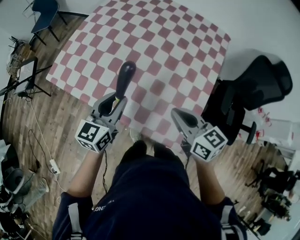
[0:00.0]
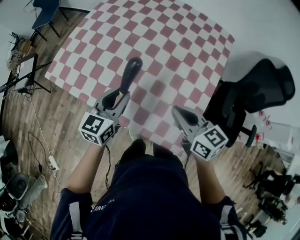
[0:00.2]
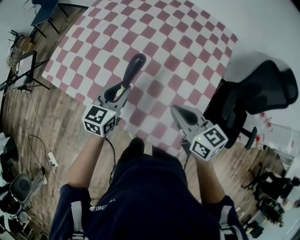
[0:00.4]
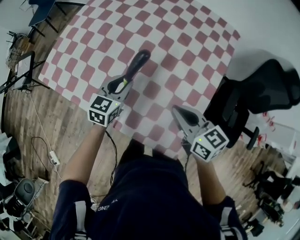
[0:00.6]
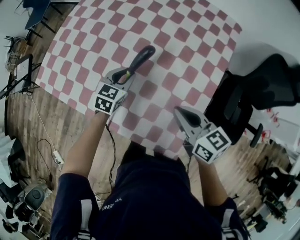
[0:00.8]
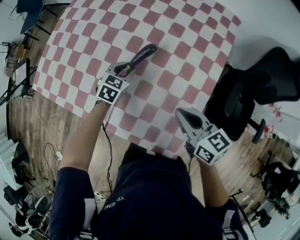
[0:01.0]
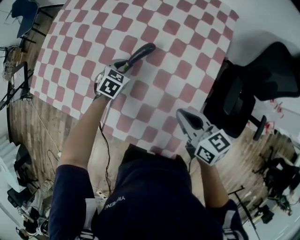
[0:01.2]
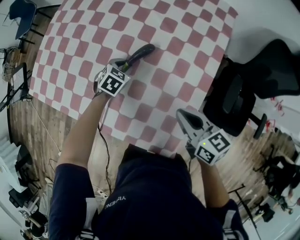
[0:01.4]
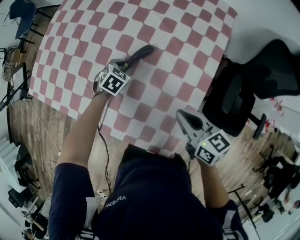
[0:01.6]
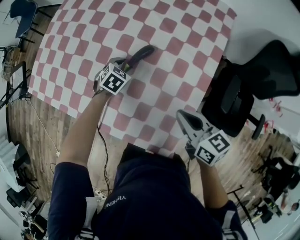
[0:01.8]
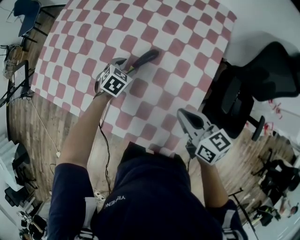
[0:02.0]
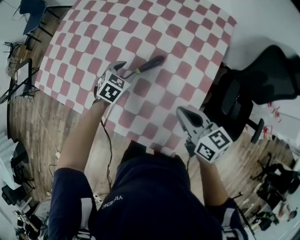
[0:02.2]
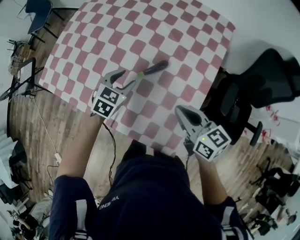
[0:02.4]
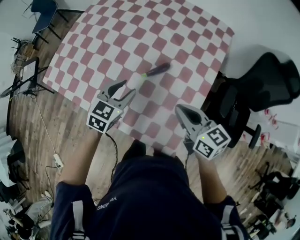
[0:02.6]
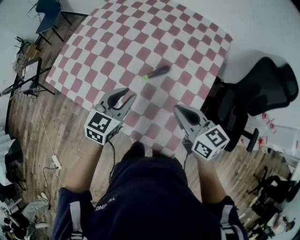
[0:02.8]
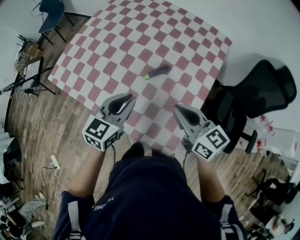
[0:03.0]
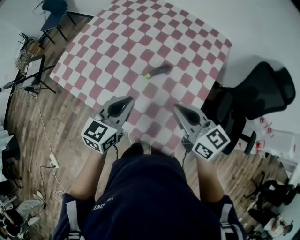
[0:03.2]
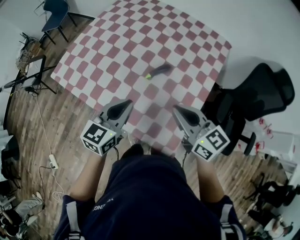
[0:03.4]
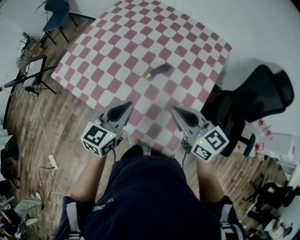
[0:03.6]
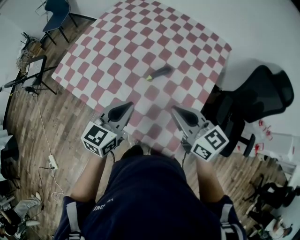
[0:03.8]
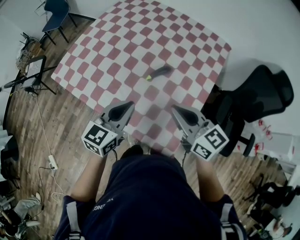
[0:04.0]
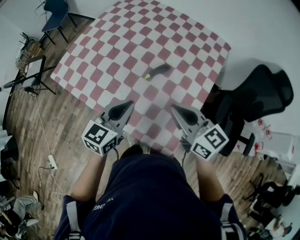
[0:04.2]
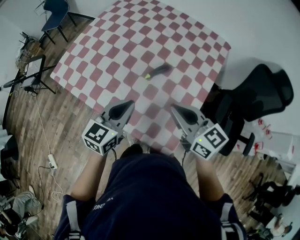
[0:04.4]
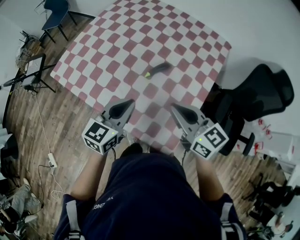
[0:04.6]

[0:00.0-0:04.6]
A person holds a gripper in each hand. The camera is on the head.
0.0 to 1.6 s: The left gripper is displaced downward, forward and to the right by some 35 cm, and tips its fingers downward by about 50 degrees; the right gripper travels to the right and downward by about 20 cm.
1.6 to 3.0 s: The left gripper goes approximately 35 cm upward and backward, angles its fingers upward, by about 40 degrees, and opens, then closes again, while the right gripper shifts approximately 15 cm upward and to the left, and turns by about 20 degrees.
3.0 to 4.6 s: The grippers move only a little.

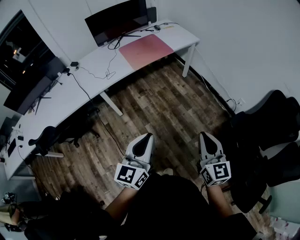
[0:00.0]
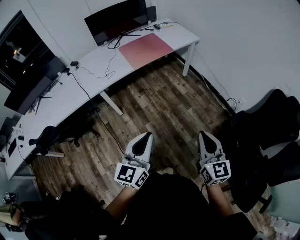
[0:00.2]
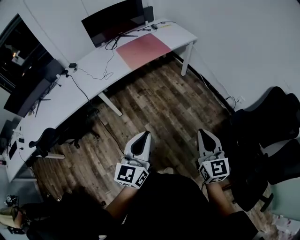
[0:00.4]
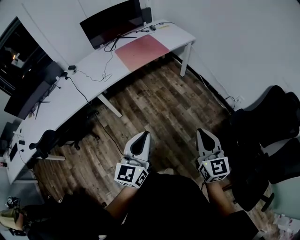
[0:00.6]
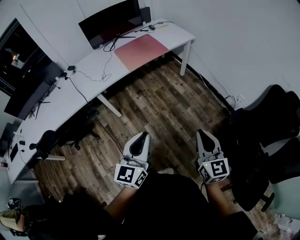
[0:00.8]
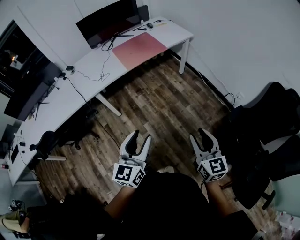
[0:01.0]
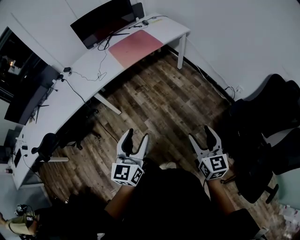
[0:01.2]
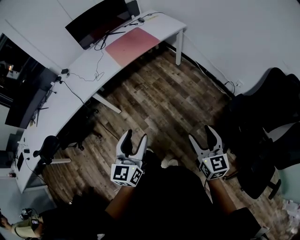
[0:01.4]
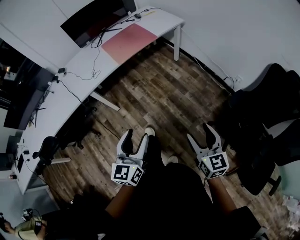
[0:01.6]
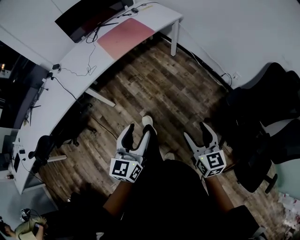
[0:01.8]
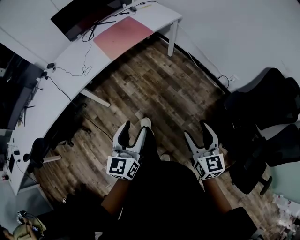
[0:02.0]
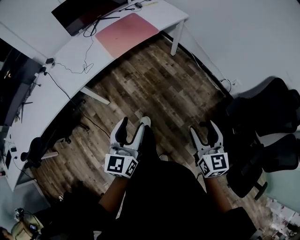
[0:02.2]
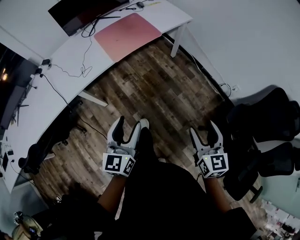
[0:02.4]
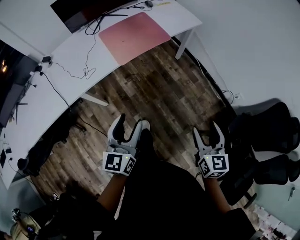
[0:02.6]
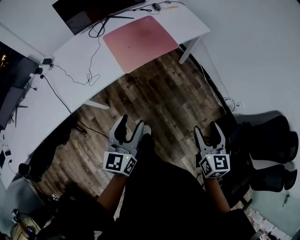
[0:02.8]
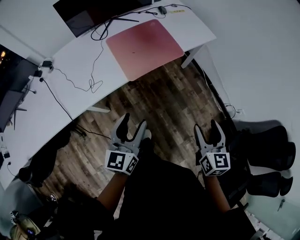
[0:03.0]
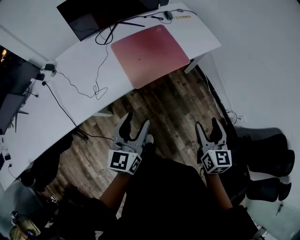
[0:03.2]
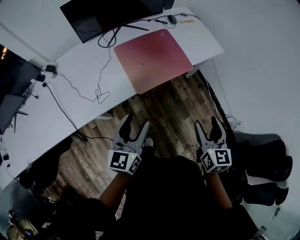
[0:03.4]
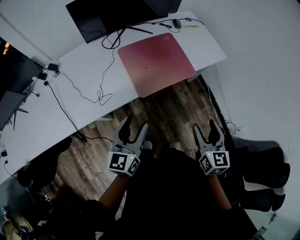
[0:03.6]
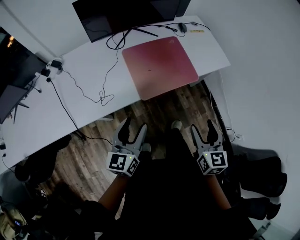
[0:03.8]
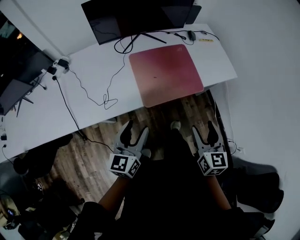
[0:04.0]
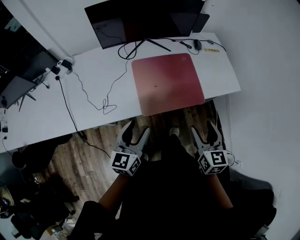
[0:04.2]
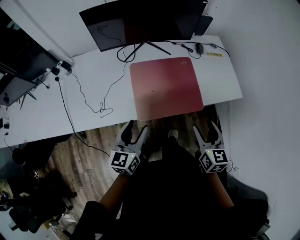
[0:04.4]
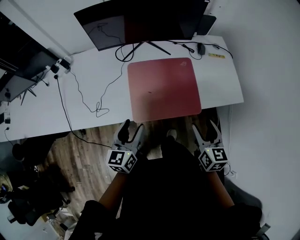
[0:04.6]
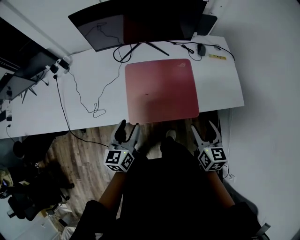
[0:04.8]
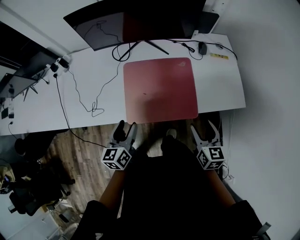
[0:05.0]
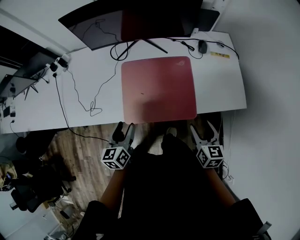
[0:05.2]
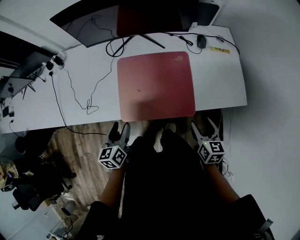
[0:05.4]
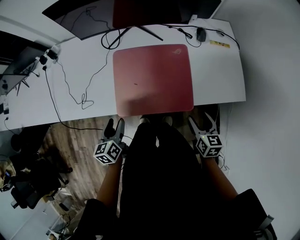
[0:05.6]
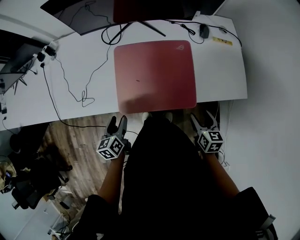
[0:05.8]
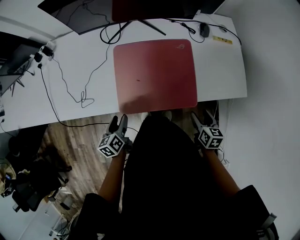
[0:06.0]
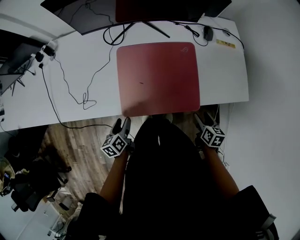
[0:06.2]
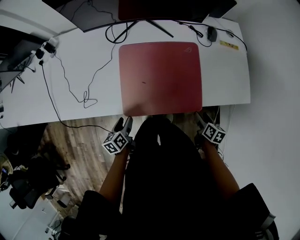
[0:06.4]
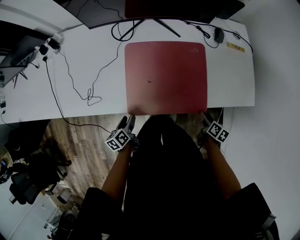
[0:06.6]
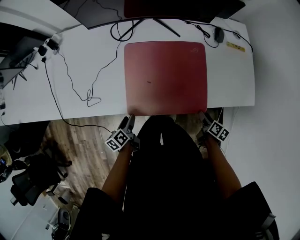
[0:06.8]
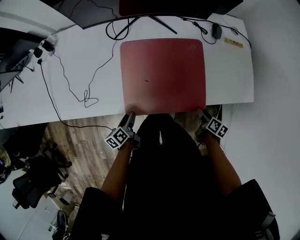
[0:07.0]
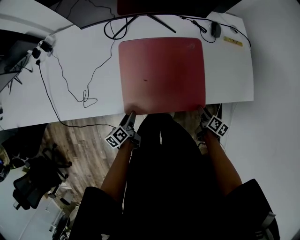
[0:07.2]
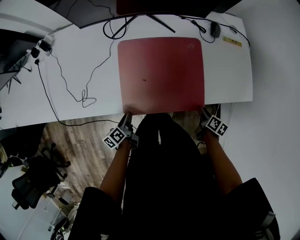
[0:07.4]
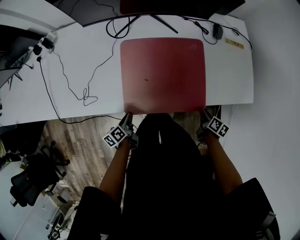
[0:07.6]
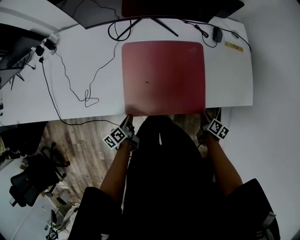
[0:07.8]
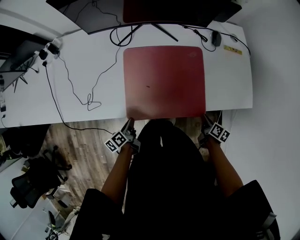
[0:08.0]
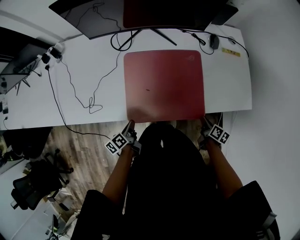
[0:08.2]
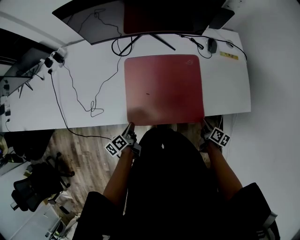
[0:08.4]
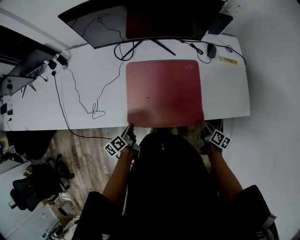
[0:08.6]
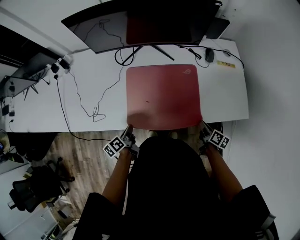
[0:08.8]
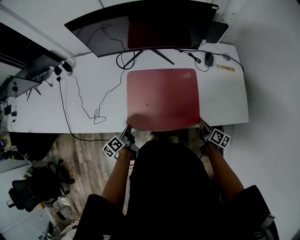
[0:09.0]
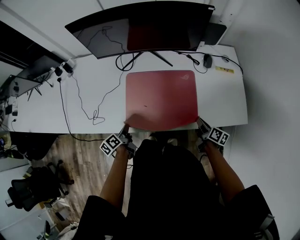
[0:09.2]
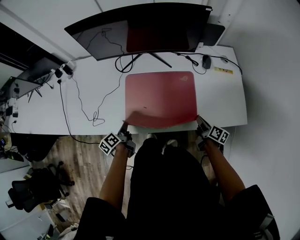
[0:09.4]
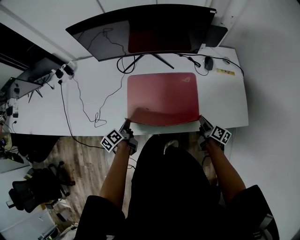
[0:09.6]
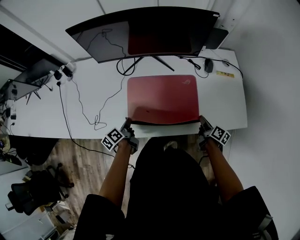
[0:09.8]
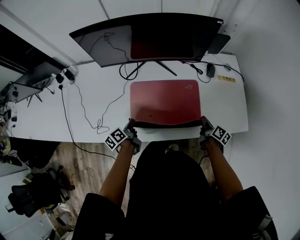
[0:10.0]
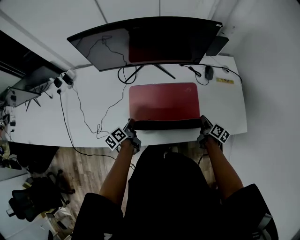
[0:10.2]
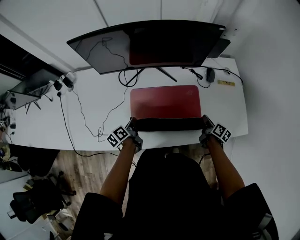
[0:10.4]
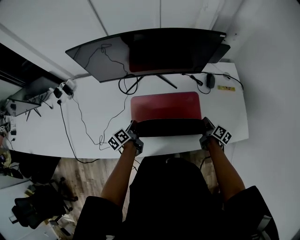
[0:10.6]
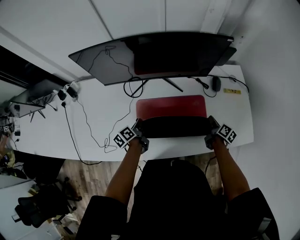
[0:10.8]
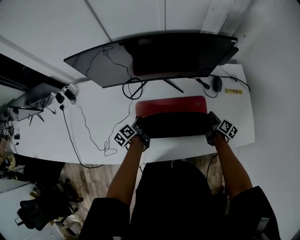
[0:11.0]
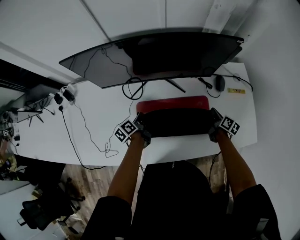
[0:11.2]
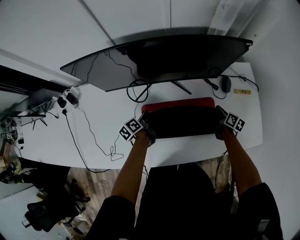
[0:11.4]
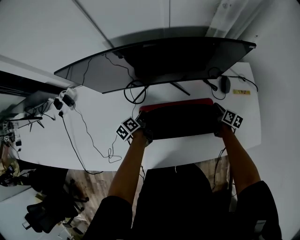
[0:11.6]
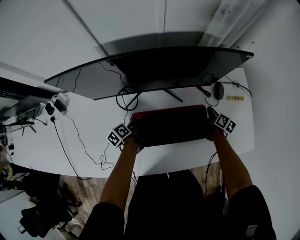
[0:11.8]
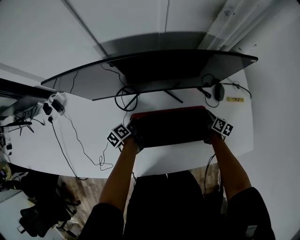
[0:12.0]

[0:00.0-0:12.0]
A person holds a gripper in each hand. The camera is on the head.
0.0 to 1.6 s: The left gripper moves about 5 cm, and opens. Meanwhile the right gripper travels downward by about 5 cm, and opens up.
1.6 to 3.0 s: The pair of grippers is taken forward, some 40 cm.
3.0 to 4.4 s: Both grippers travel together forward, roughly 25 cm. The right gripper swivels about 20 degrees.
4.4 to 6.0 s: The right gripper moves downward, to the right and forward, about 25 cm, and turns by some 20 degrees, while the left gripper shifts roughly 20 cm downward, and turns by about 40 degrees.
6.0 to 7.6 s: The two grippers go some 10 cm downward. The left gripper rotates approximately 20 degrees, and closes up. Meanwhile the right gripper swivels roughly 30 degrees, and closes up.
7.6 to 9.0 s: The right gripper moves upward and forward, roughly 10 cm. Meanwhile the left gripper moves upward, approximately 10 cm.
9.0 to 10.4 s: The two grippers go about 15 cm forward.
10.4 to 12.0 s: The grippers both shift forward by about 20 cm.

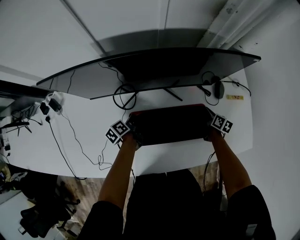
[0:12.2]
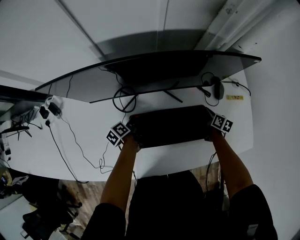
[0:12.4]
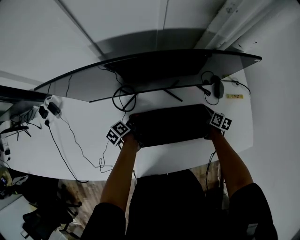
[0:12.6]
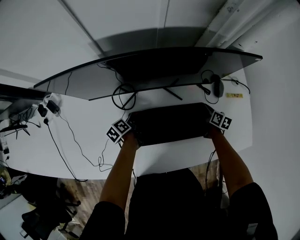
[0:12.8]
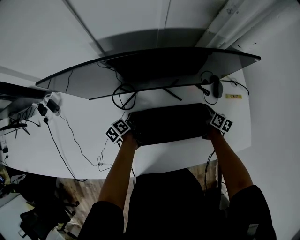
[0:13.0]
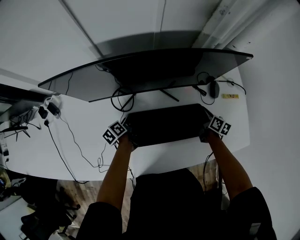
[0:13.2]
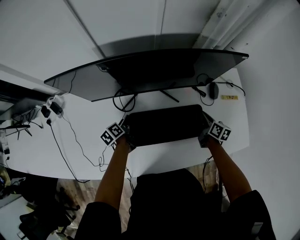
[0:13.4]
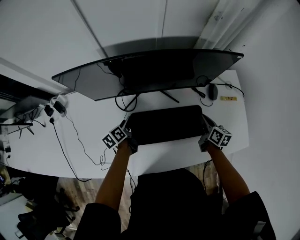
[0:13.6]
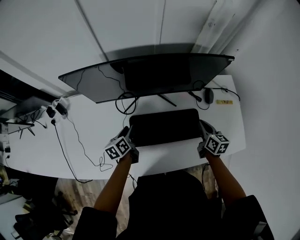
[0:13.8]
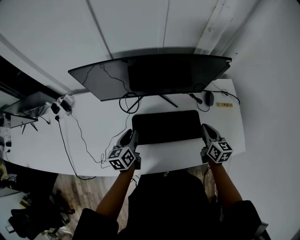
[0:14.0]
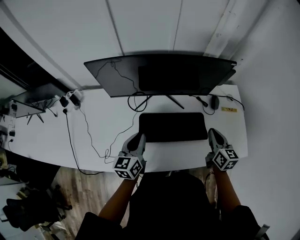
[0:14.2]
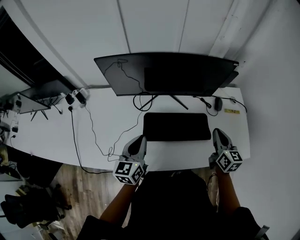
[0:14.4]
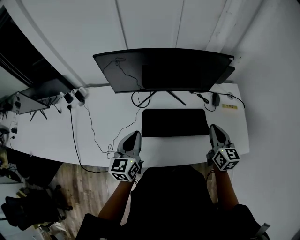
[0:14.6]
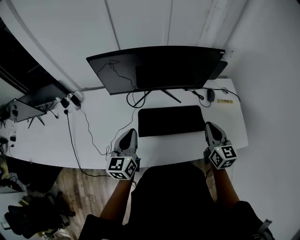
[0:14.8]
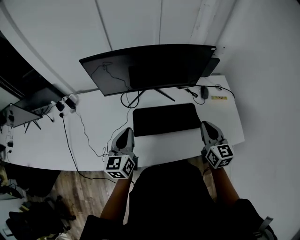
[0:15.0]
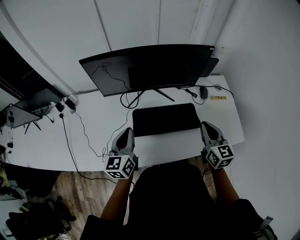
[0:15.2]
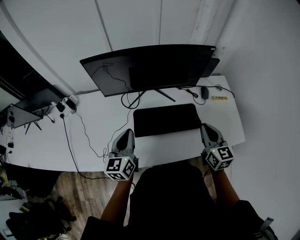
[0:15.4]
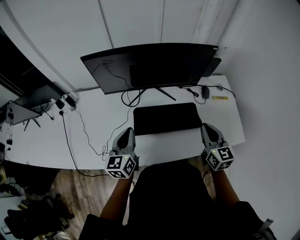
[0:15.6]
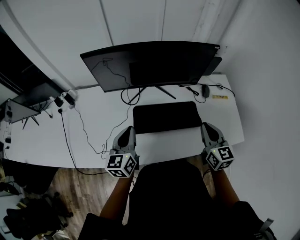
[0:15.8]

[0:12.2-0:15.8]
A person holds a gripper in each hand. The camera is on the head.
12.2 to 14.0 s: Both grippers move upward and backward, about 25 cm. The right gripper turns by about 30 degrees. Meanwhile the left gripper turns by roughly 40 degrees, and opens its fingers.
14.0 to 15.8 s: The right gripper shifts some 15 cm backward and upward, while the left gripper travels upward and backward by about 15 cm, rotates roughly 20 degrees, and closes.

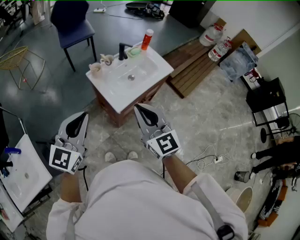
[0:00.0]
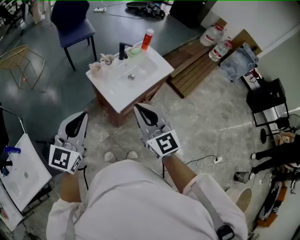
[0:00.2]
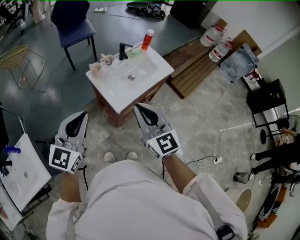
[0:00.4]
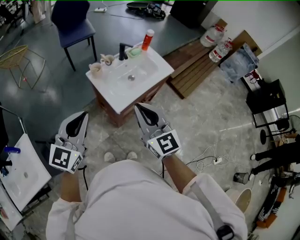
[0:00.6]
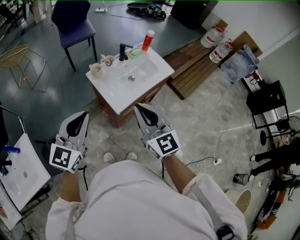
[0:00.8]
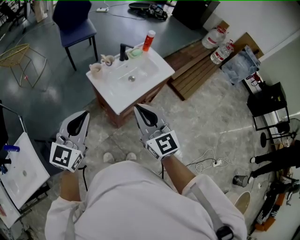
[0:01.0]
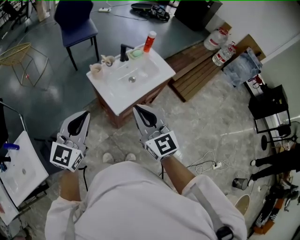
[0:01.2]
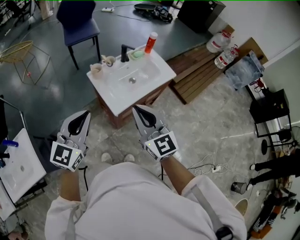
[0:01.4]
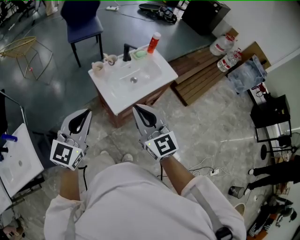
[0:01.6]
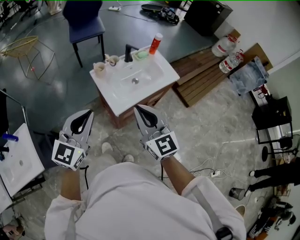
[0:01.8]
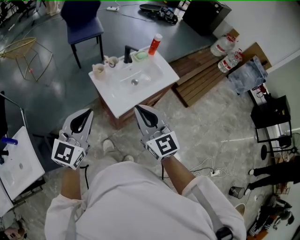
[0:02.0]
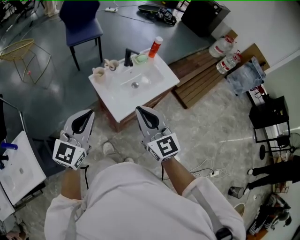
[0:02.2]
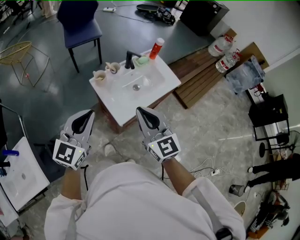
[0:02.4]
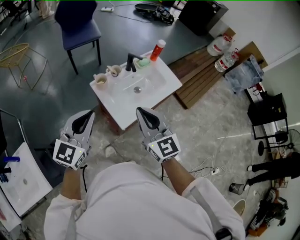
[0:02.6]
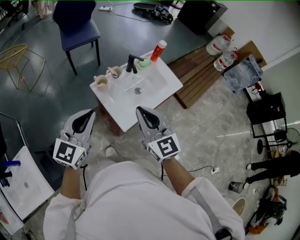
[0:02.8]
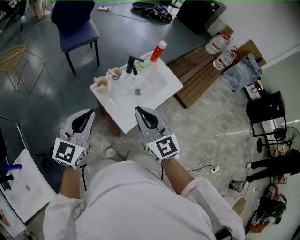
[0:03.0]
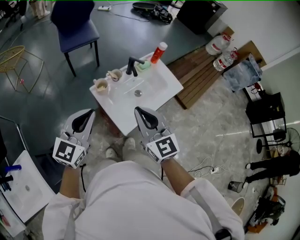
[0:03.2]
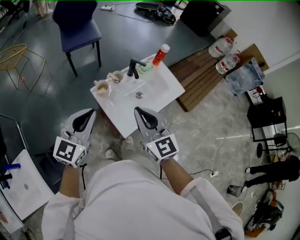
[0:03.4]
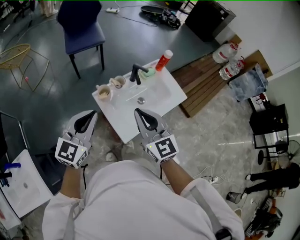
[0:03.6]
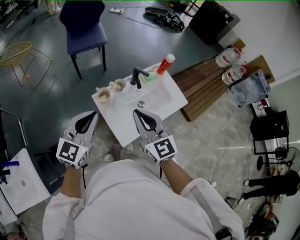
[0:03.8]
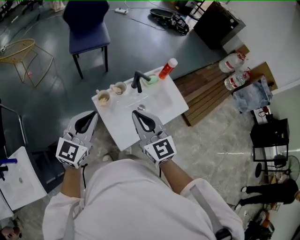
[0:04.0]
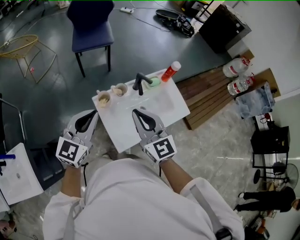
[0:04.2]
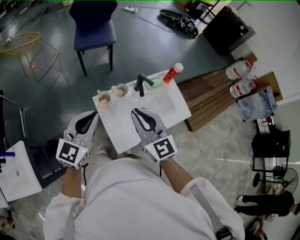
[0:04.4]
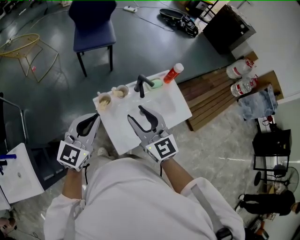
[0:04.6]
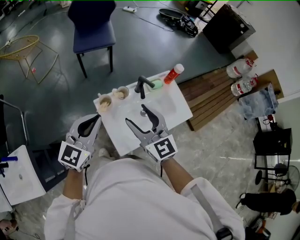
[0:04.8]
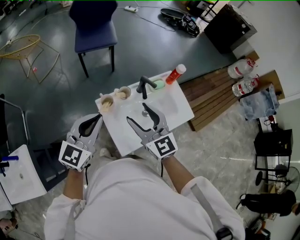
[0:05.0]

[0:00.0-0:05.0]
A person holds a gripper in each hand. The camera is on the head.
0.0 to 1.6 s: The left gripper moves roughly 5 cm.
1.6 to 3.4 s: The left gripper travels forward by about 20 cm. Meanwhile the right gripper goes some 20 cm forward and to the left.
3.4 to 5.0 s: Both grippers move forward, roughly 10 cm. The right gripper opens its fingers.
